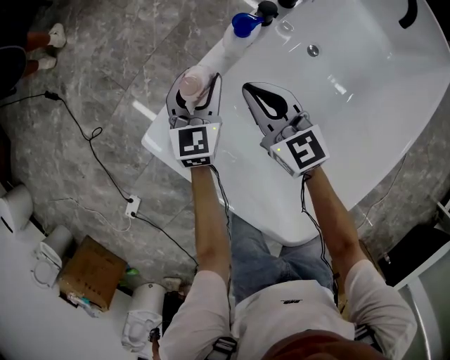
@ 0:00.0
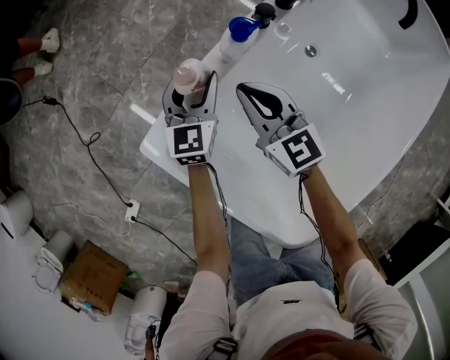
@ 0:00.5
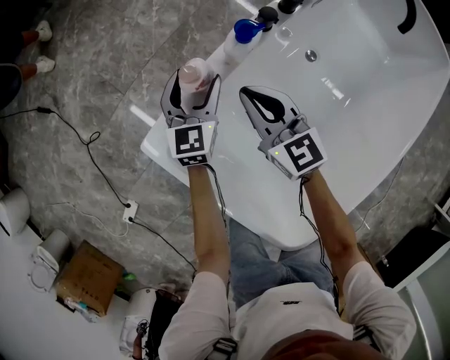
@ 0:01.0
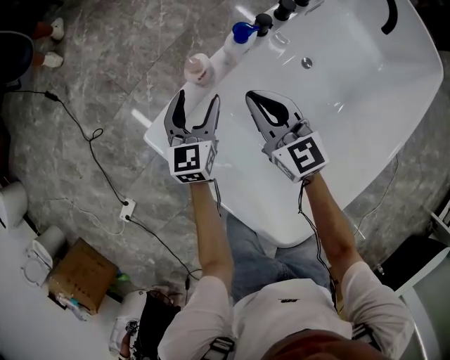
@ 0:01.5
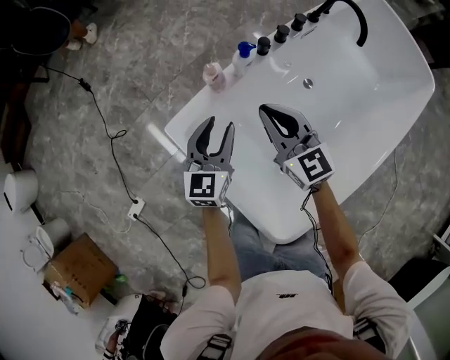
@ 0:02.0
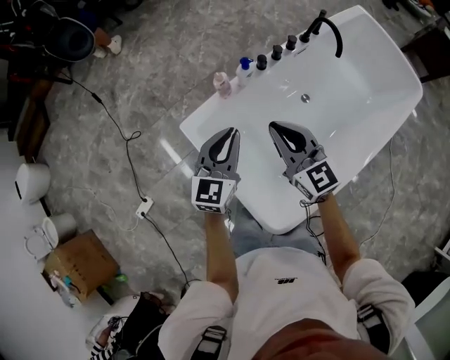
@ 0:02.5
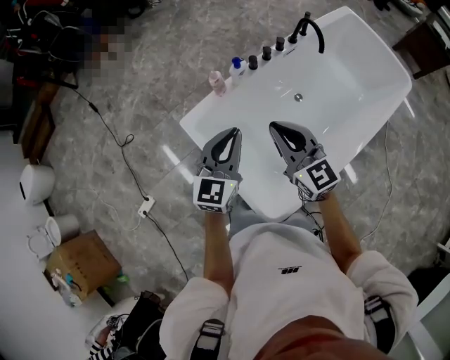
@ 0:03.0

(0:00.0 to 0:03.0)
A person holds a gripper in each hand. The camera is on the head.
0:00.0 - 0:01.5: The right gripper shifts some 5 cm upward, while the left gripper shifts by about 5 cm.
0:01.5 - 0:03.0: Both grippers move upward and backward, some 50 cm. The left gripper closes its fingers.

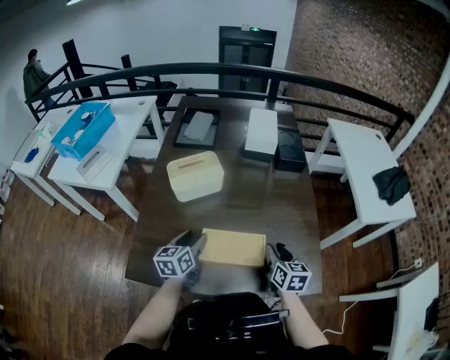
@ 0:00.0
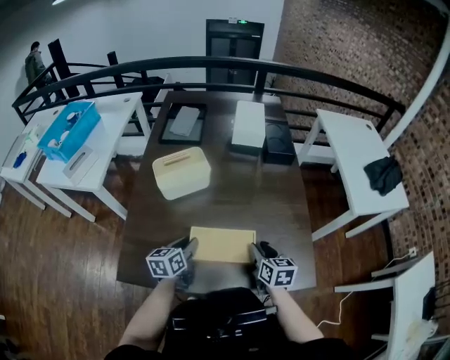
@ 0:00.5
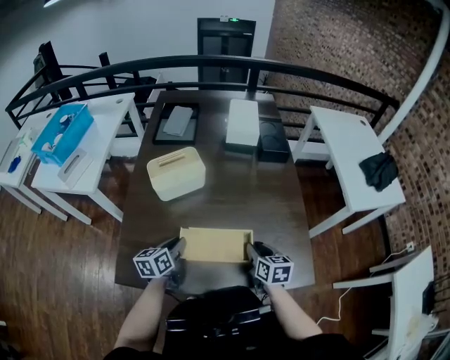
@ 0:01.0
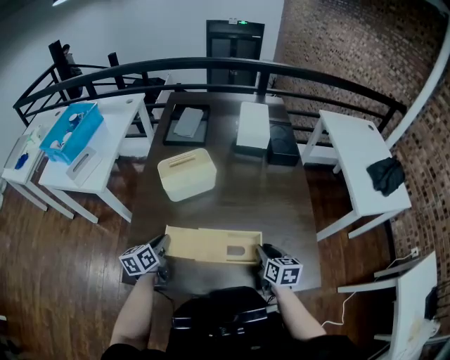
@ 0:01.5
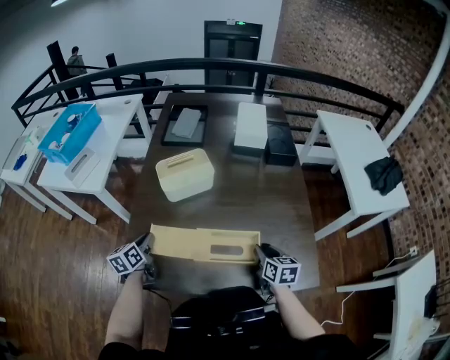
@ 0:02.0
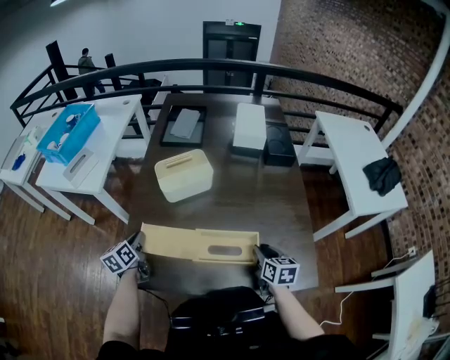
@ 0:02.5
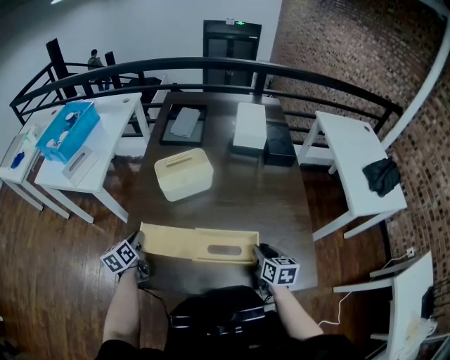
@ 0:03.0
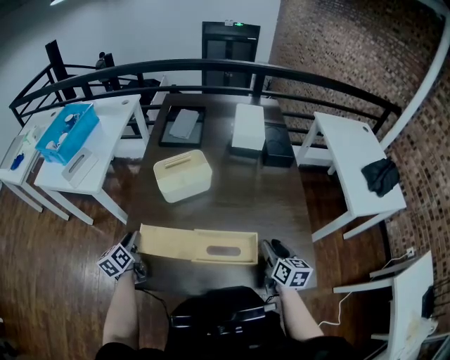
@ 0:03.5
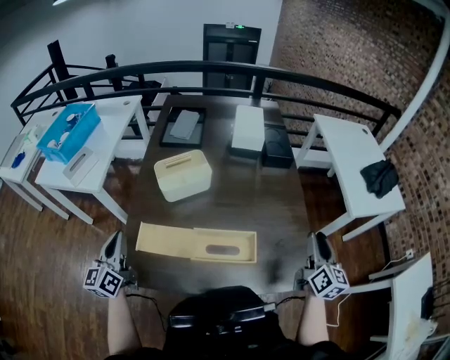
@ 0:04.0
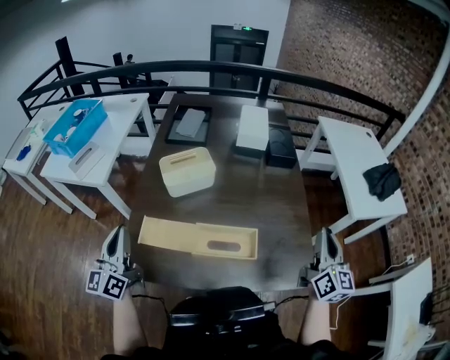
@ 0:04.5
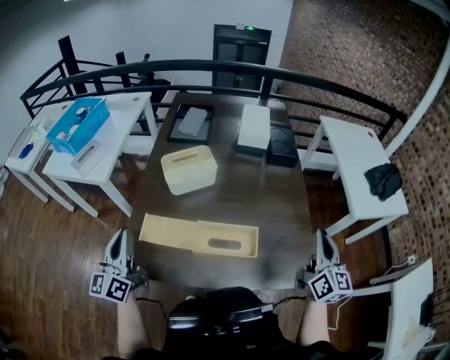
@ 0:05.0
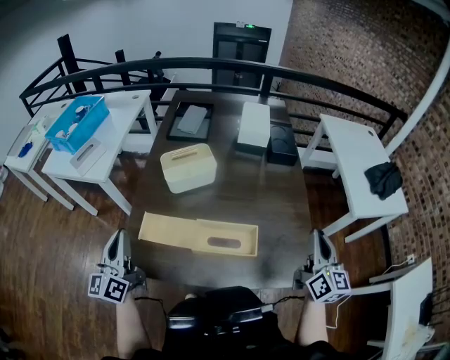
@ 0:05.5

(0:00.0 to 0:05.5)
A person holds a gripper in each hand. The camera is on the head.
0:00.0 - 0:02.0: The left gripper shifts approximately 15 cm to the left, and closes.
0:02.0 - 0:03.5: The right gripper shifts by some 5 cm; the left gripper shifts roughly 5 cm to the left, and opens its fingers.
0:03.5 - 0:05.5: The left gripper heads upward and backward, covering roughly 20 cm, angles its fingers upward, by about 30 degrees, and closes its fingers; the right gripper heads upward and to the right, covering some 20 cm, changes its angle by about 30 degrees, and closes.

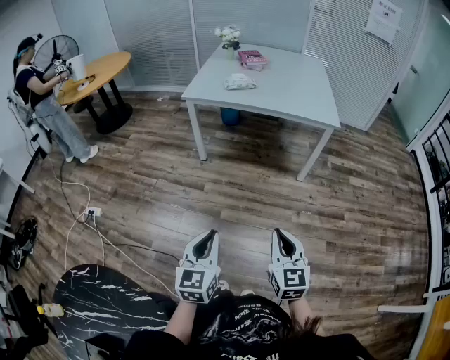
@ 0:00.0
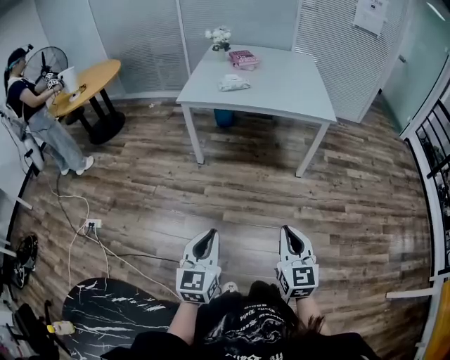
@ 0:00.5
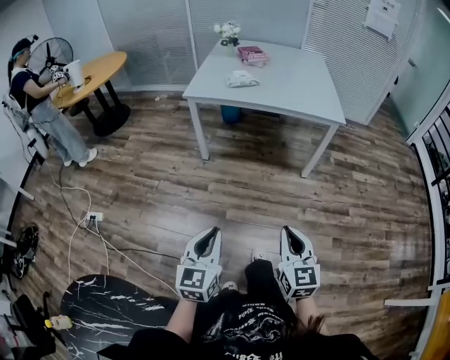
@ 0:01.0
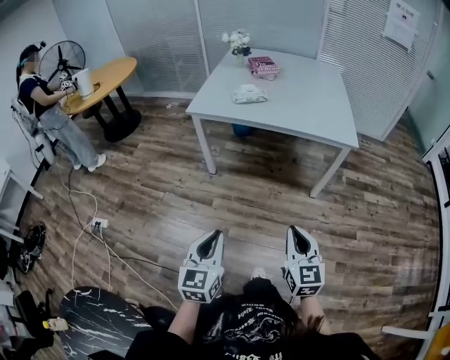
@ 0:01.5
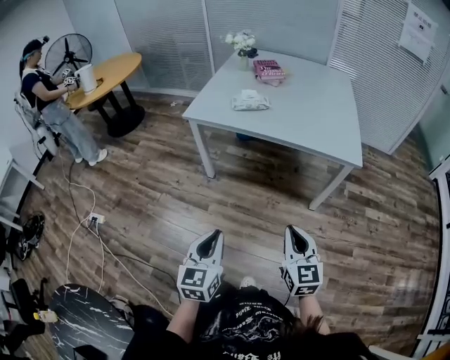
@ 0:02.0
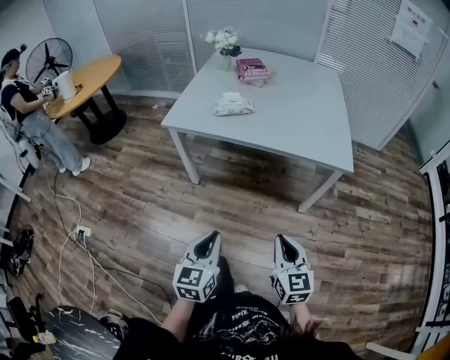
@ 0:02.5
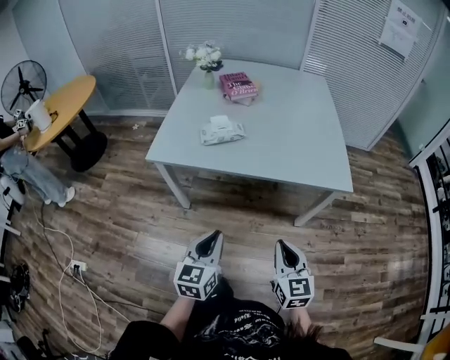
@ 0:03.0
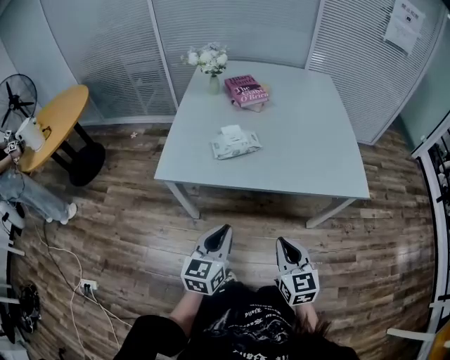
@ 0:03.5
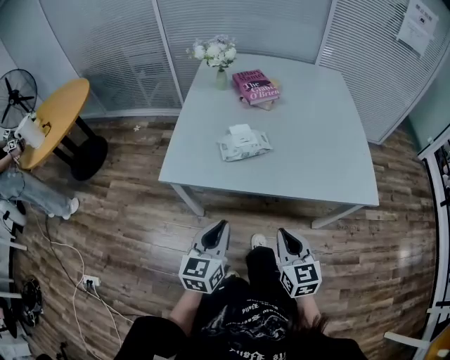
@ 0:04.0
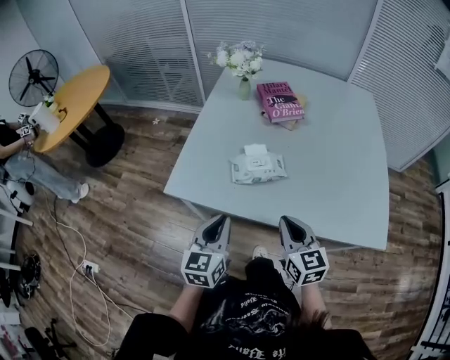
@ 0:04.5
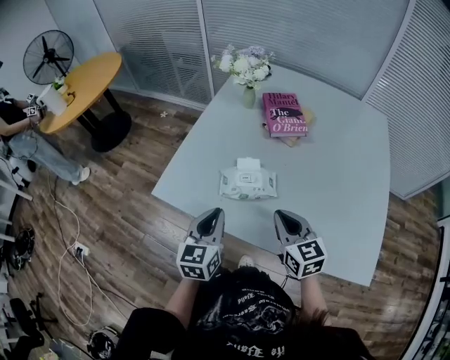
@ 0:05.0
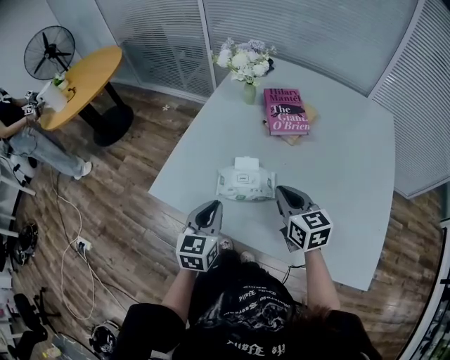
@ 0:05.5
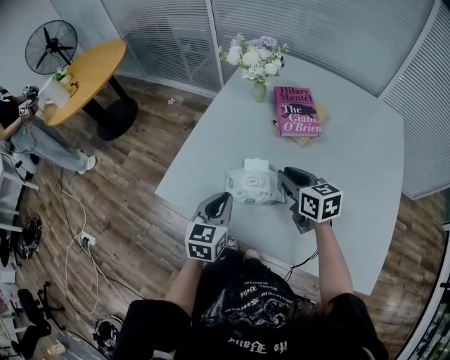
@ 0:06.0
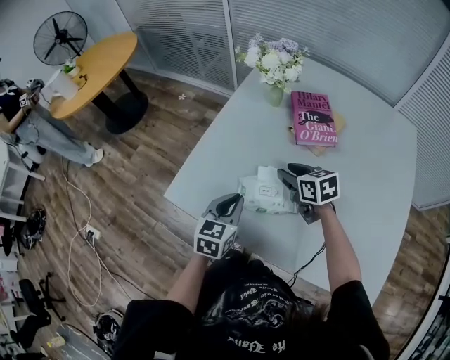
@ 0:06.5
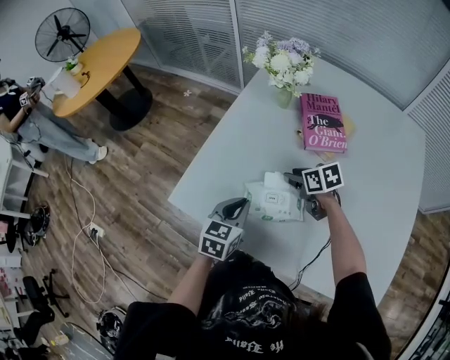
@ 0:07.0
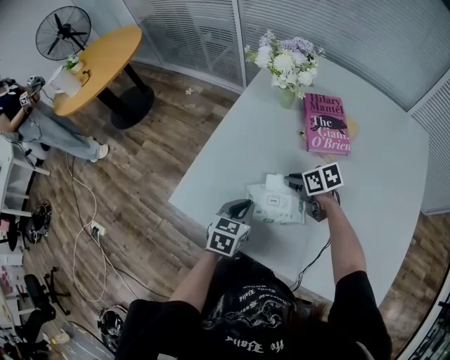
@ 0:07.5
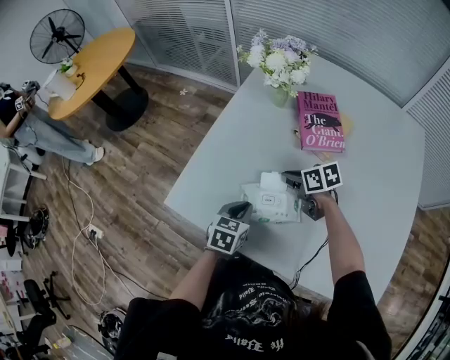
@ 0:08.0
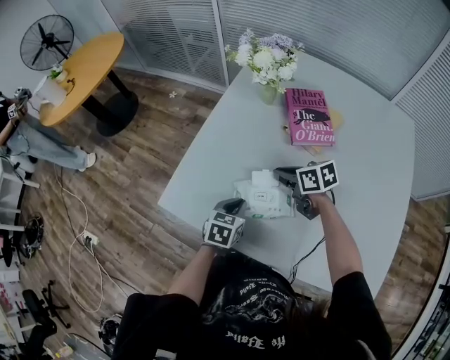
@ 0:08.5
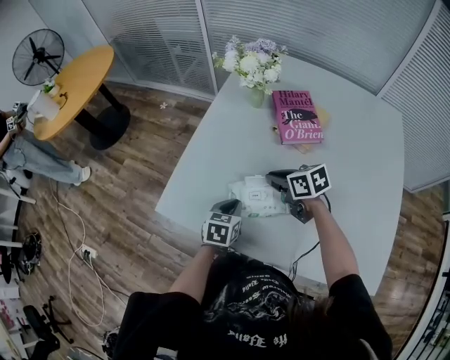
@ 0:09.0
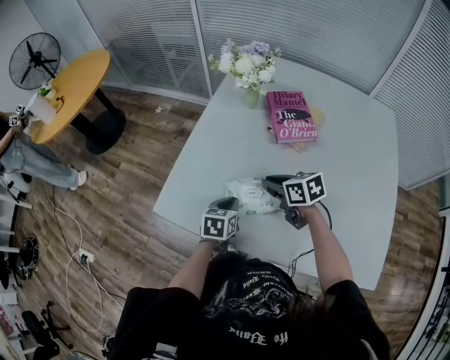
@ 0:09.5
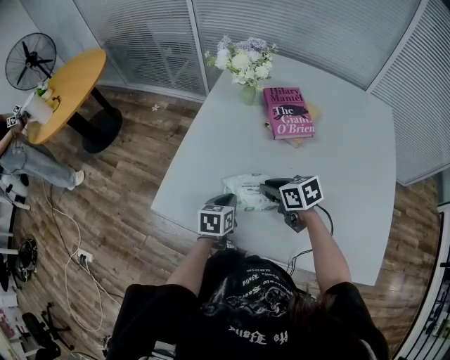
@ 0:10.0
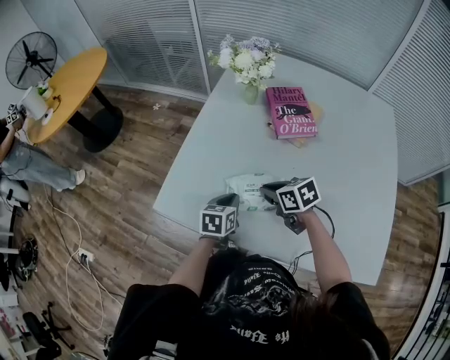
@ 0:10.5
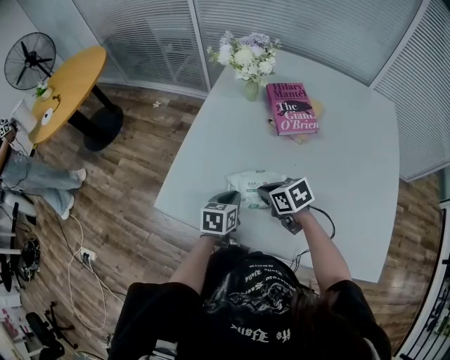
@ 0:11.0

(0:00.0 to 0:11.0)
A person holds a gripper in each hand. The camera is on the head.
0:00.0 - 0:02.0: Both grippers move forward, roughly 25 cm.
0:02.0 - 0:03.5: The right gripper travels forward and to the left by about 30 cm. Meanwhile the left gripper heads forward, covering some 35 cm, and swivels some 20 degrees.
0:03.5 - 0:05.5: The right gripper ends up some 40 cm from where it was, and changes its angle by some 30 degrees; the left gripper moves some 30 cm, and changes its angle by some 30 degrees.
0:05.5 - 0:07.5: The right gripper moves forward and downward, some 20 cm, rotates some 40 degrees, and opens. The left gripper heads forward and downward, covering roughly 15 cm.
0:07.5 - 0:09.0: The right gripper shifts about 5 cm upward.
0:09.0 - 0:11.0: The right gripper heads backward, covering roughly 5 cm.

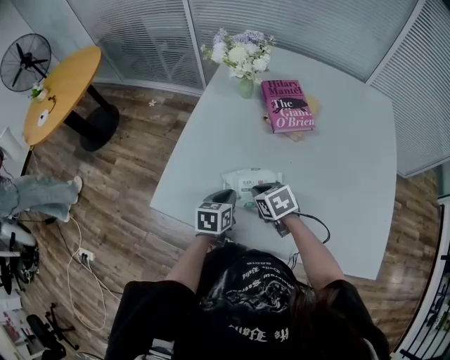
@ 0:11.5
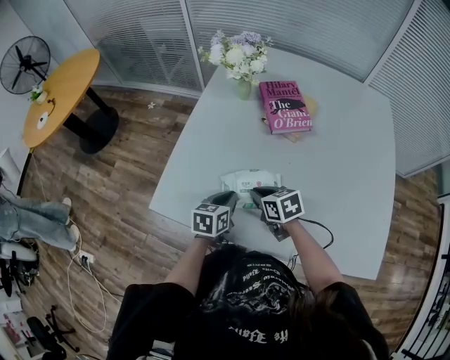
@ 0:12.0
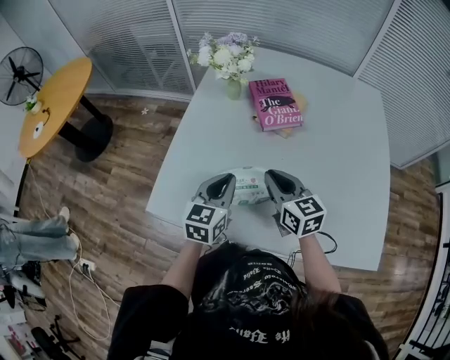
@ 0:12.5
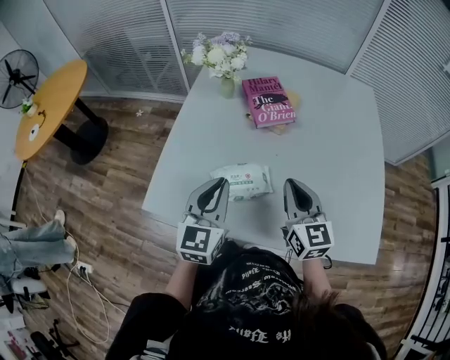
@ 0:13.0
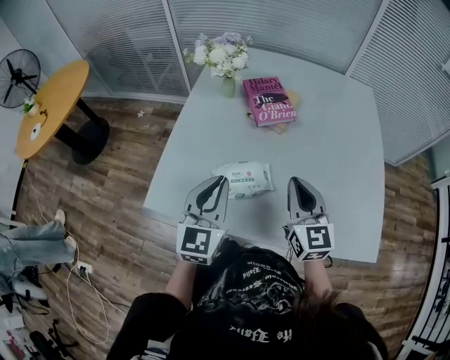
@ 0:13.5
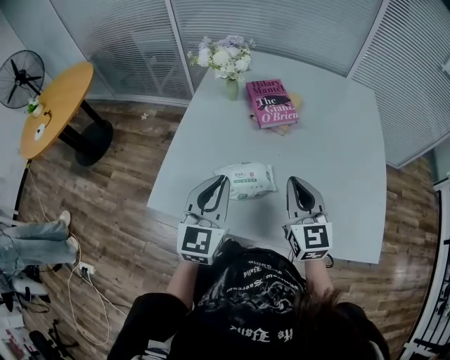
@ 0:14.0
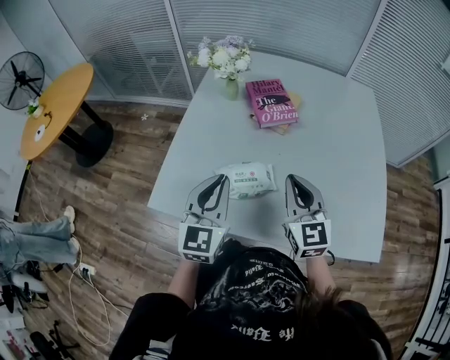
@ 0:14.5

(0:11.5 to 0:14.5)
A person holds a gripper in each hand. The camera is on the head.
0:11.5 - 0:13.0: The right gripper moves upward and to the right, approximately 20 cm, and points its fingers roughly 40 degrees further upward, while the left gripper goes approximately 20 cm upward, and tips its fingers upward by some 30 degrees.
0:13.0 - 0:14.5: The grippers stay close to where they were, moving slightly.

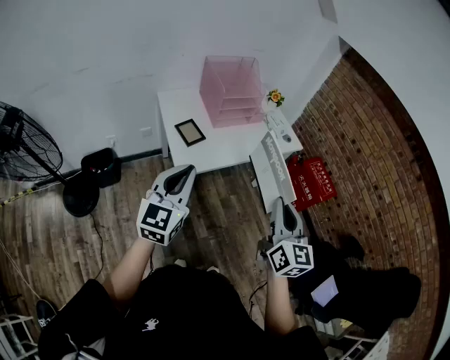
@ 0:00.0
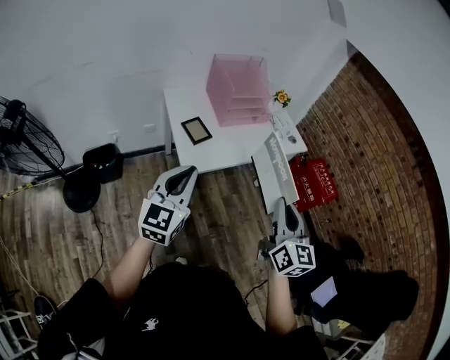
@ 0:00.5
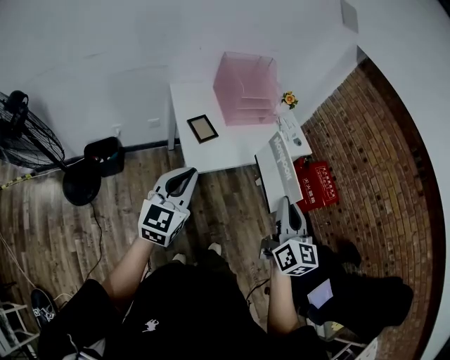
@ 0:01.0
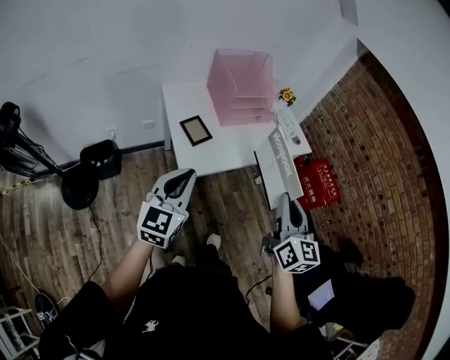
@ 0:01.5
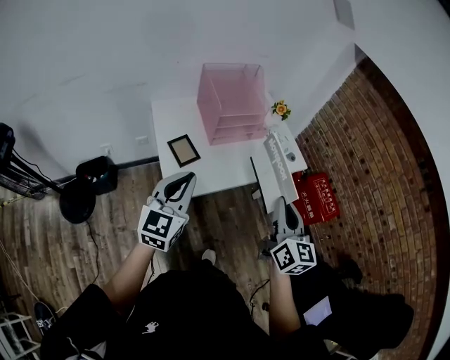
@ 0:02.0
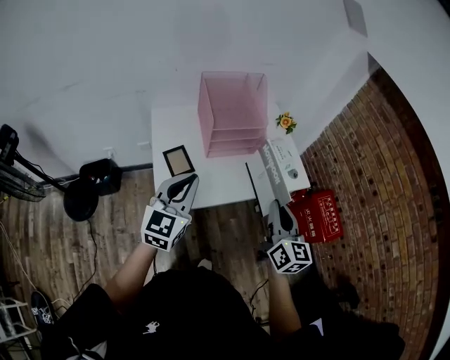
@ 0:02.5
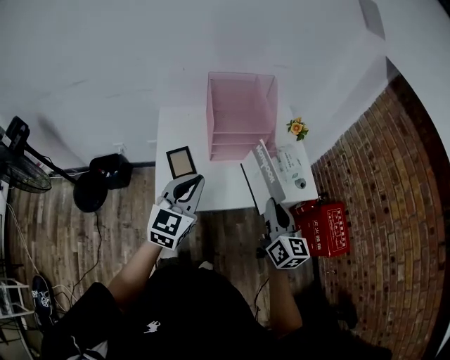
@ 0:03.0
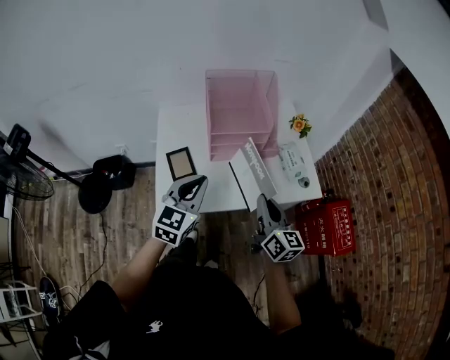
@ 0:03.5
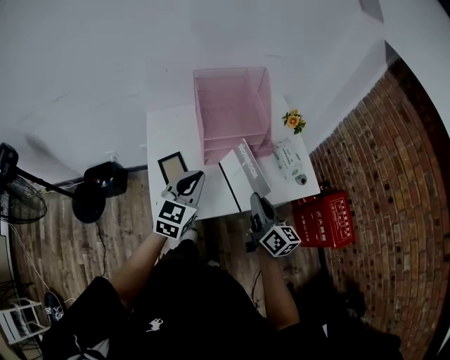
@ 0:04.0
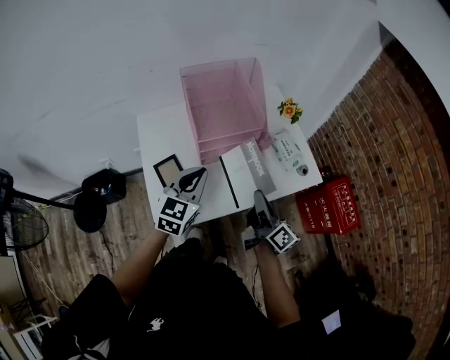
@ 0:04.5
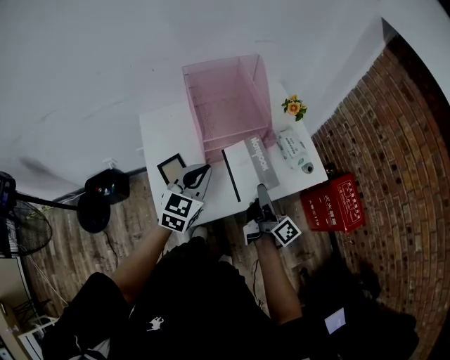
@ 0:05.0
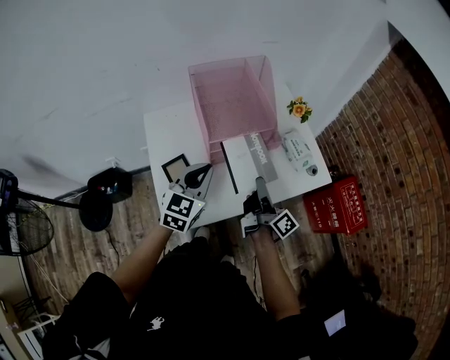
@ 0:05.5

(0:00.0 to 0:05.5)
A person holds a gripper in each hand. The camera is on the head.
0:00.0 - 0:02.0: Both grippers move forward, some 15 cm.
0:02.0 - 0:03.5: The right gripper heads forward and downward, covering roughly 20 cm, and rotates some 30 degrees. The left gripper is displaced forward, to the right and downward by some 20 cm.
0:03.5 - 0:05.5: The right gripper moves forward and downward, some 10 cm, and rotates around the line of its fingers by some 50 degrees, clockwise from behind. The left gripper is displaced forward by some 10 cm.
